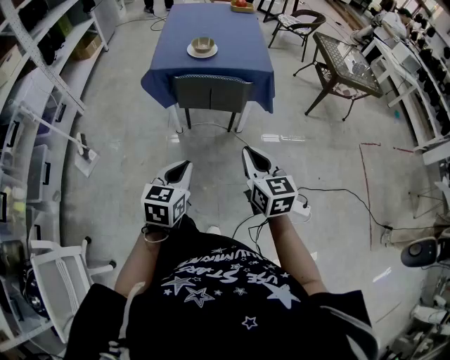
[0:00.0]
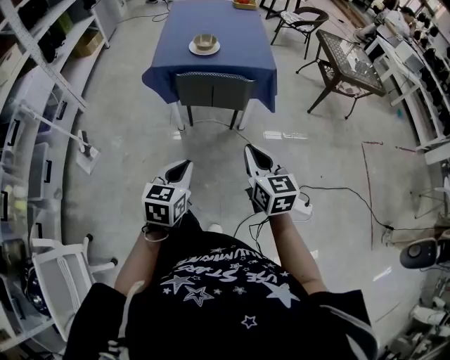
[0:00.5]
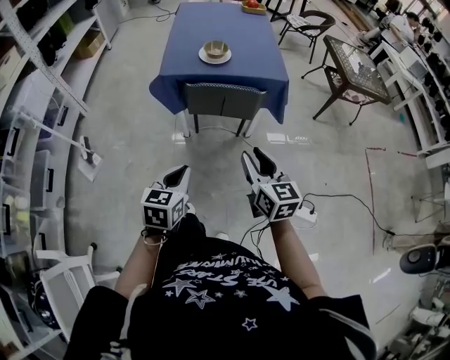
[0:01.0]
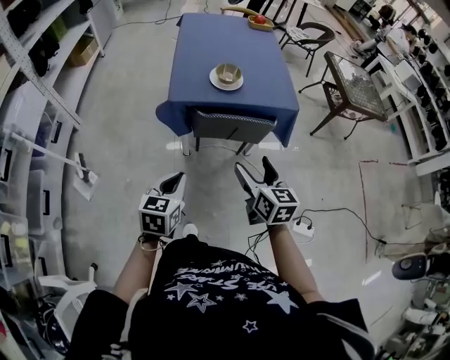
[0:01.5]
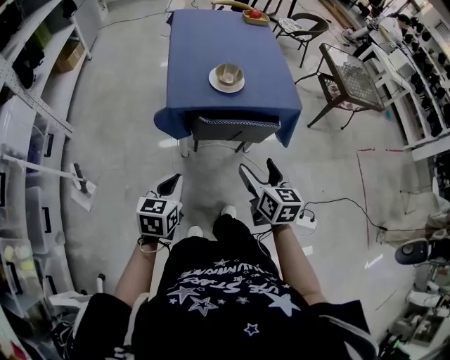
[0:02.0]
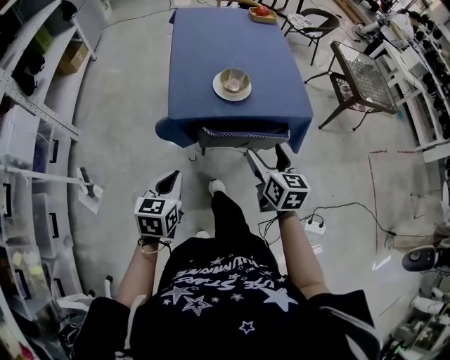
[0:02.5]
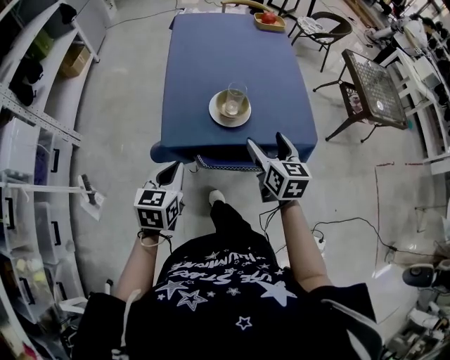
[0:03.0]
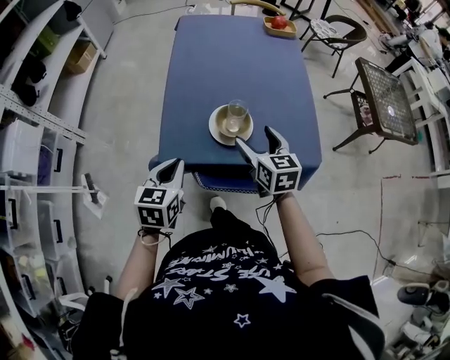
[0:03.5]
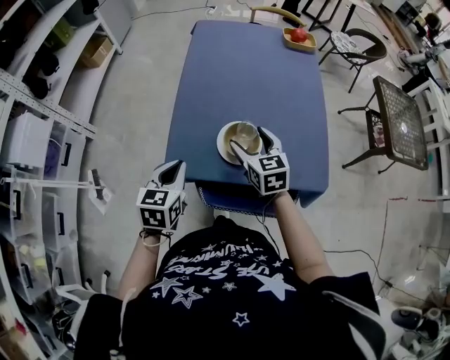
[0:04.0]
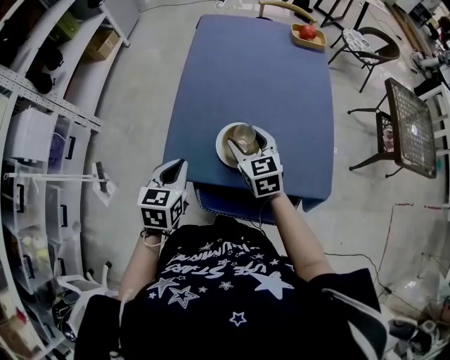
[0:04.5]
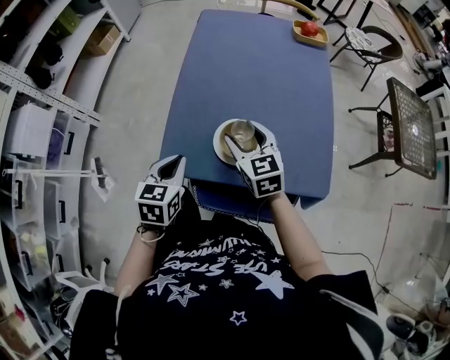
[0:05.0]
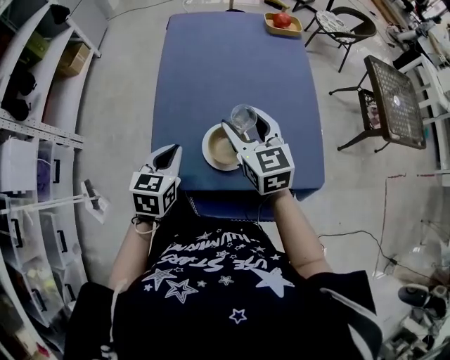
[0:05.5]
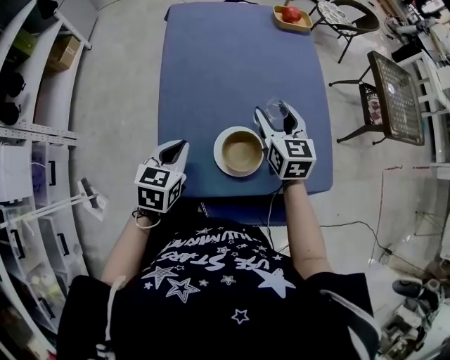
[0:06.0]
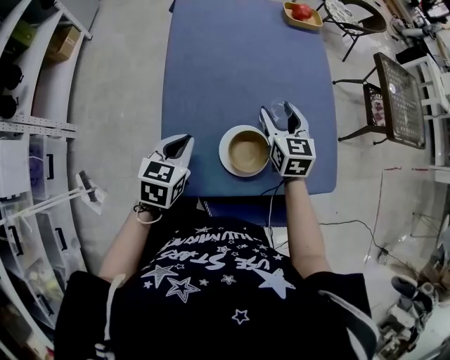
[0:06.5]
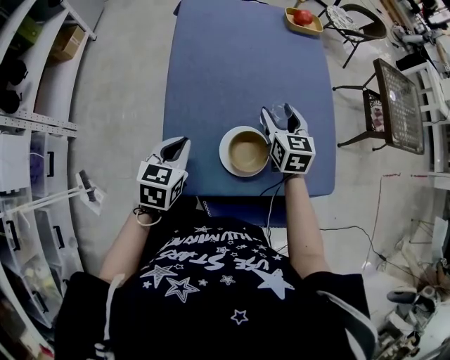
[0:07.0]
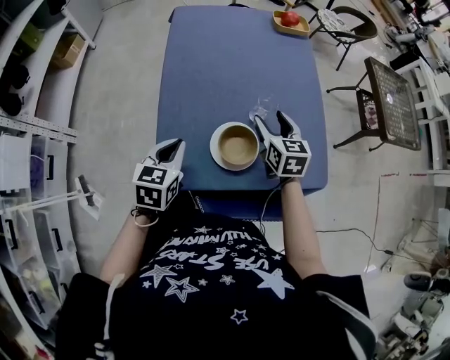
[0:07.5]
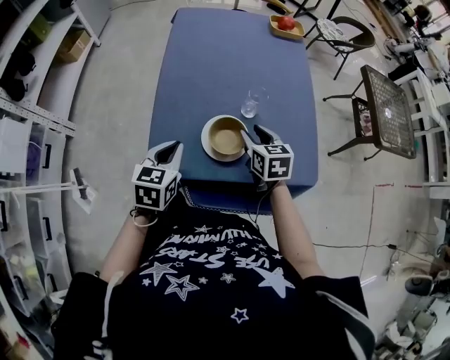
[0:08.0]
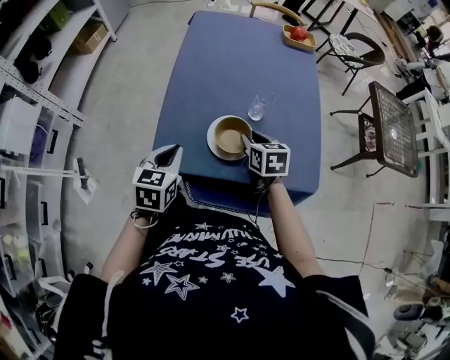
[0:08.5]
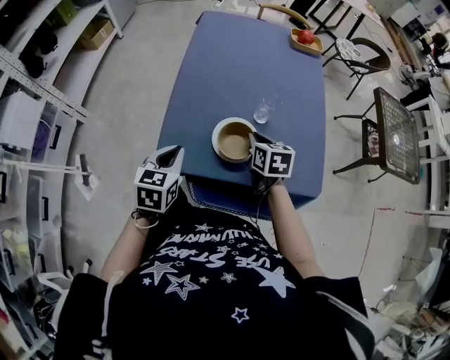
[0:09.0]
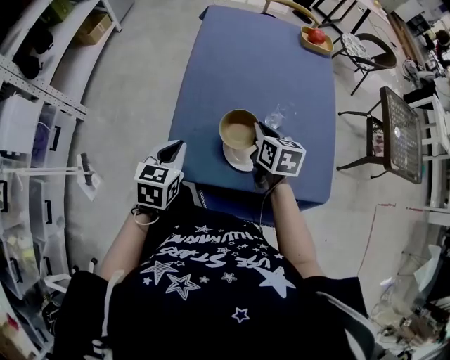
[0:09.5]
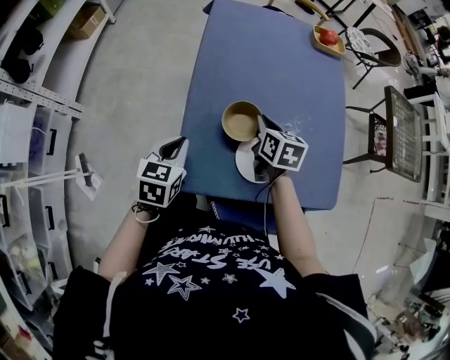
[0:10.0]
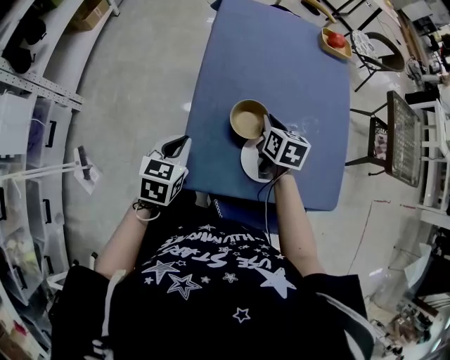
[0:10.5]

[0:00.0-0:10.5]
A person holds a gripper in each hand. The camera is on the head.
0:00.0 to 0:02.0: The right gripper shifts some 25 cm forward and to the left, and opens, while the left gripper travels to the left and forward by approximately 30 cm.
0:02.0 to 0:04.0: The two grippers go approximately 35 cm forward. The right gripper rotates some 30 degrees.
0:04.0 to 0:06.5: The right gripper goes about 15 cm forward and to the right. Meanwhile the left gripper travels forward by some 15 cm.
0:06.5 to 0:08.5: The left gripper travels backward by roughly 10 cm. The right gripper heads backward and downward, covering about 10 cm, changes its angle by some 20 degrees, and closes up.
0:08.5 to 0:10.5: The right gripper goes approximately 15 cm forward and to the left. The left gripper travels to the left and forward by about 15 cm.

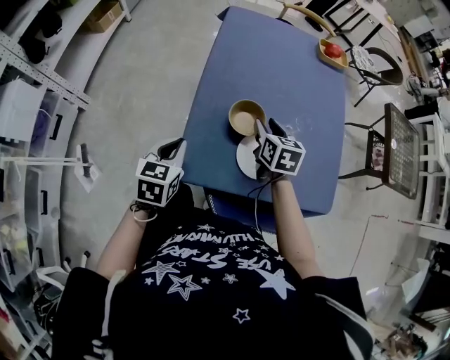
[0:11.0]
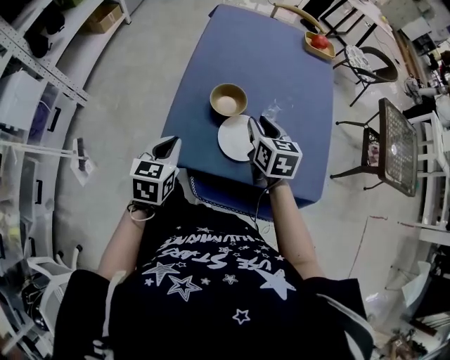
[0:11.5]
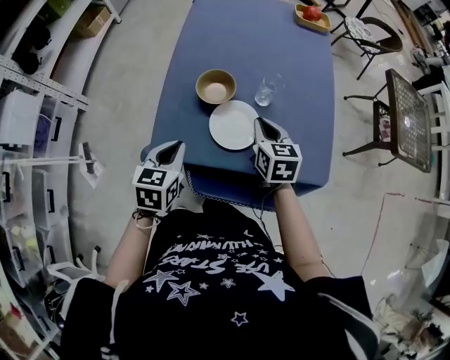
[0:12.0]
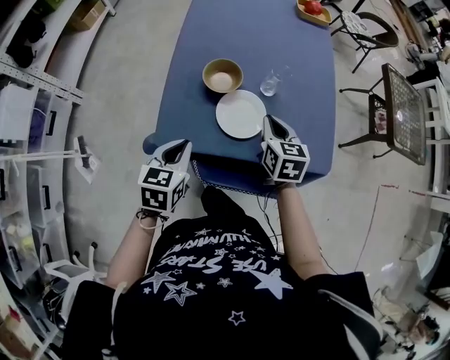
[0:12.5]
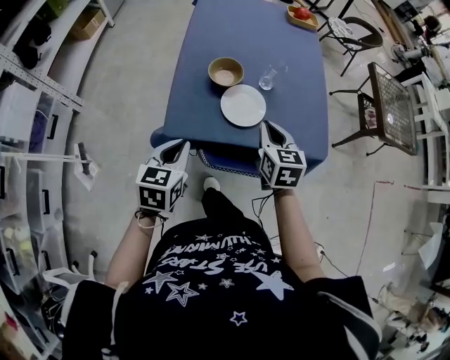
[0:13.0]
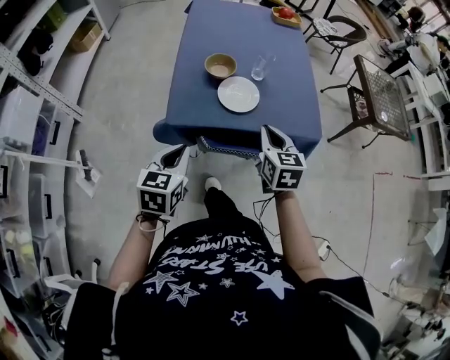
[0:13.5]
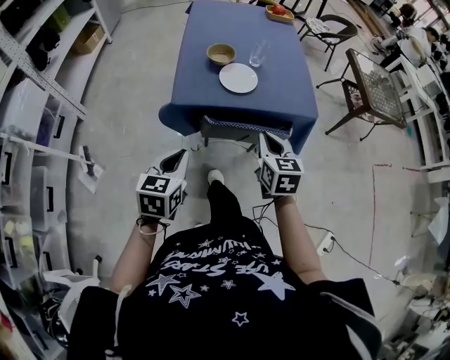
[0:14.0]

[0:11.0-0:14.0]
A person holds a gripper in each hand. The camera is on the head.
0:11.0 to 0:12.5: The right gripper shifts roughly 15 cm backward and to the right, and closes its fingers; the left gripper goes roughly 15 cm to the right and backward.
0:12.5 to 0:14.0: The two grippers go about 25 cm backward.

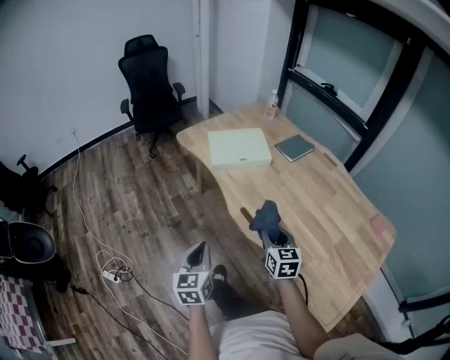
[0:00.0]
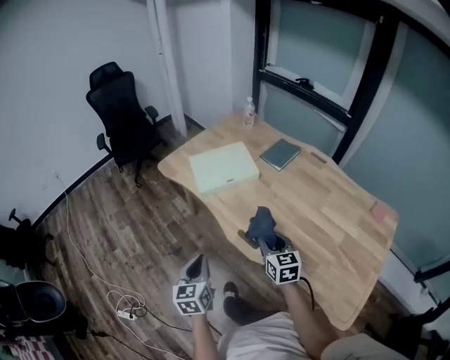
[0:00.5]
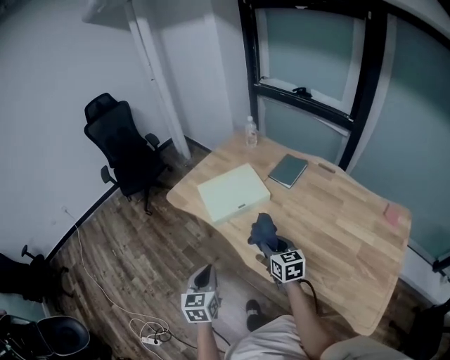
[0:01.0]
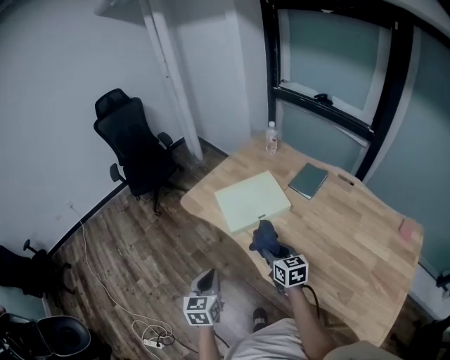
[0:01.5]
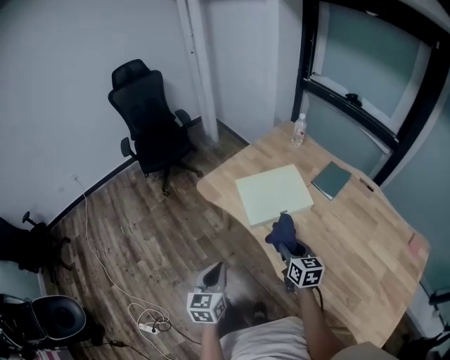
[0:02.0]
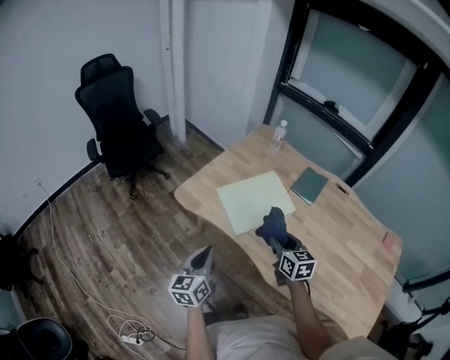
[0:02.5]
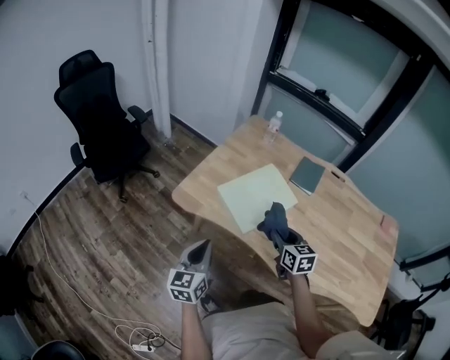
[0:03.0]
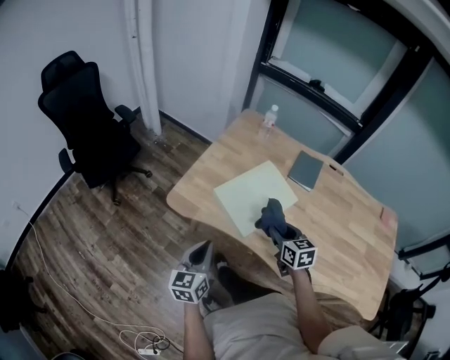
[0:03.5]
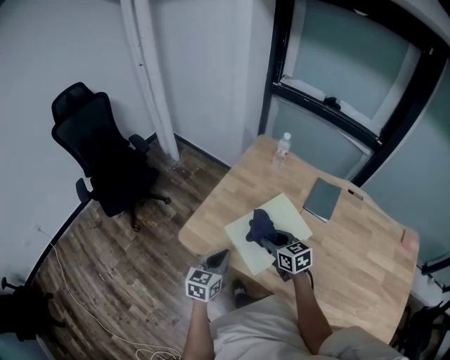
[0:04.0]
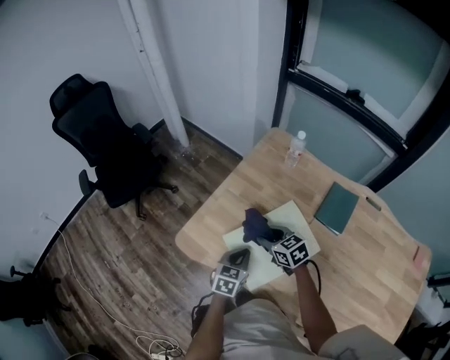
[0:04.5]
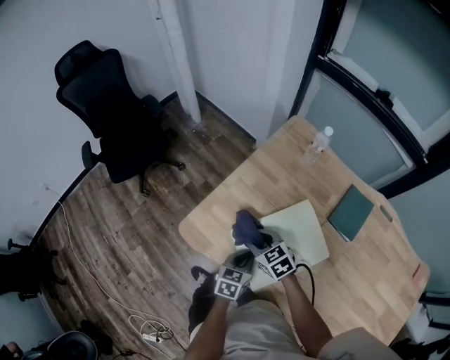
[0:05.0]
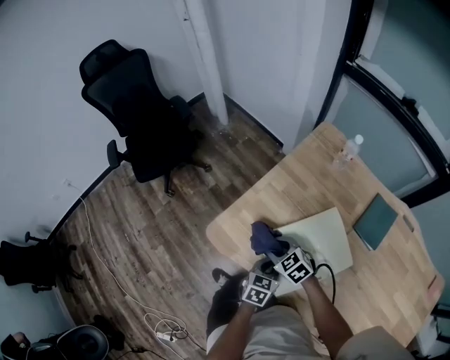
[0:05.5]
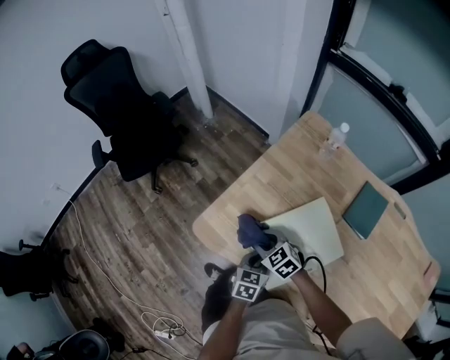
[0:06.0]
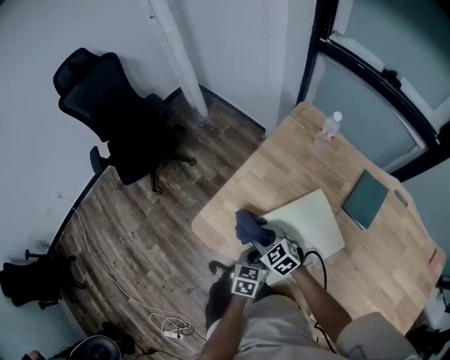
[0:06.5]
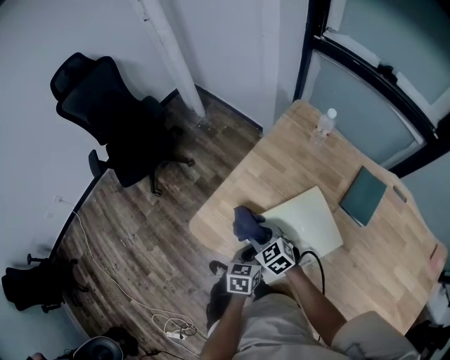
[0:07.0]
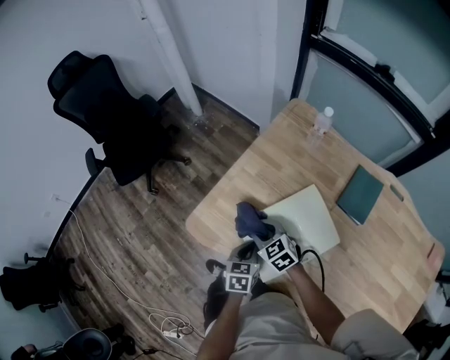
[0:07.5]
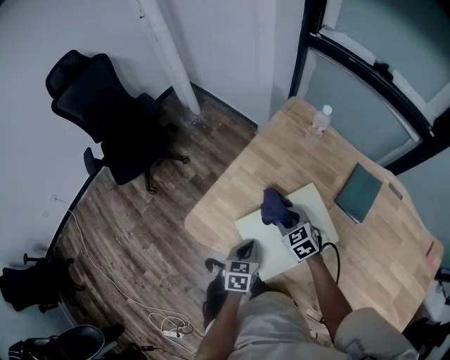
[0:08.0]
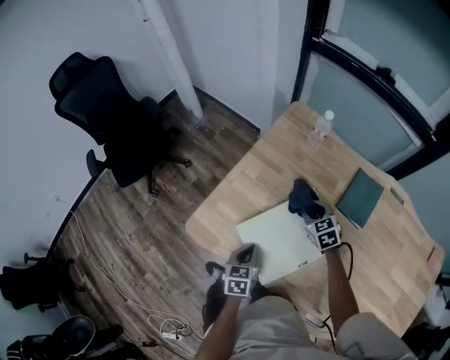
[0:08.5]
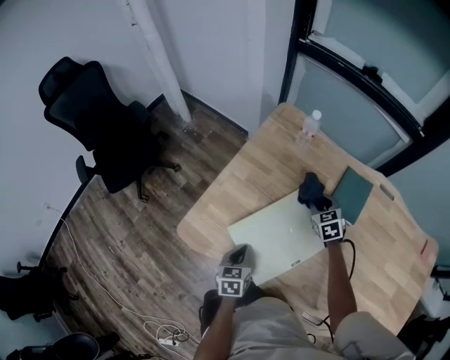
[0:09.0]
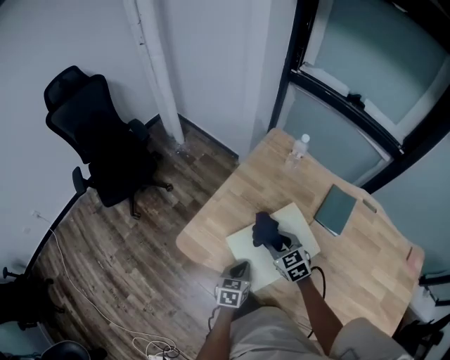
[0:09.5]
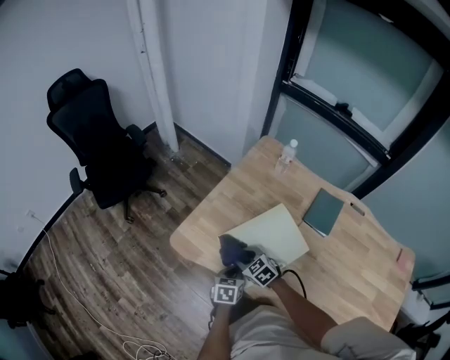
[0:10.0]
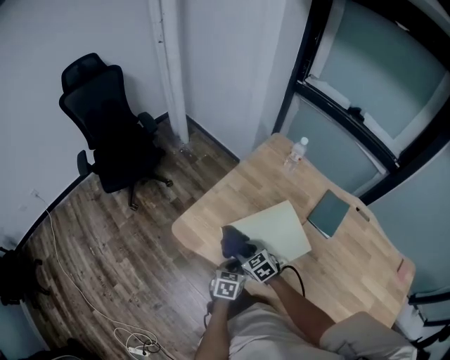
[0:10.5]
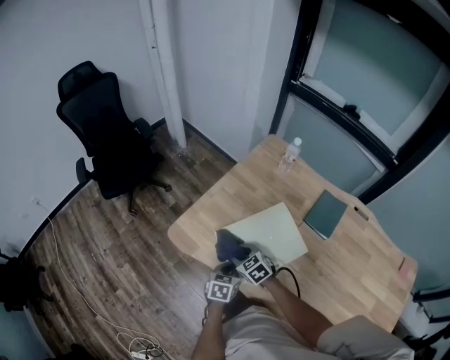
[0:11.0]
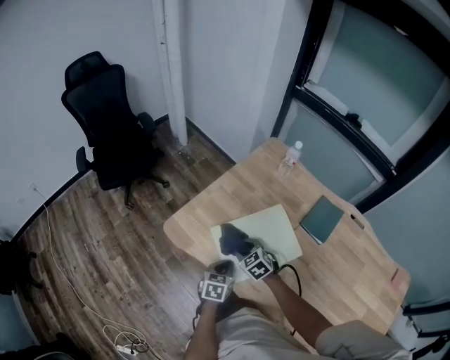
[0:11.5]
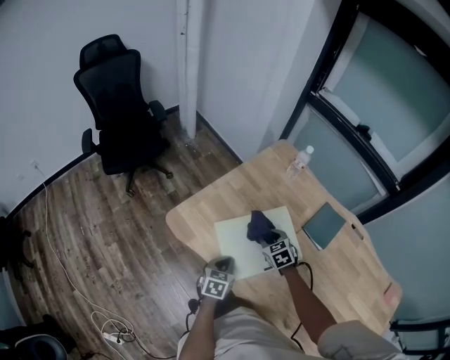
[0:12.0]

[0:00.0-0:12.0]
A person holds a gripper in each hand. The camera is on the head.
0:00.0 to 0:02.0: The two grippers go some 30 cm forward and to the left.
0:02.0 to 0:04.0: The left gripper goes roughly 30 cm forward, and rotates roughly 30 degrees. Meanwhile the right gripper moves forward and to the left, roughly 25 cm.
0:04.0 to 0:06.0: The left gripper goes approximately 15 cm downward, to the right and forward; the right gripper moves downward, to the left and forward, about 20 cm, and turns by roughly 40 degrees.
0:06.0 to 0:08.0: The right gripper shifts roughly 15 cm to the right.
0:08.0 to 0:10.0: The left gripper is displaced backward by about 5 cm; the right gripper is displaced backward by some 10 cm, and moves some 15 cm to the right and comes back.
0:10.0 to 0:12.0: The right gripper goes approximately 15 cm to the right and forward.

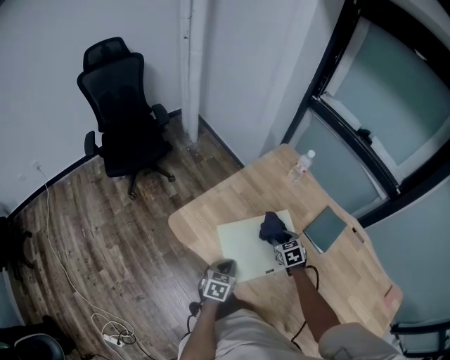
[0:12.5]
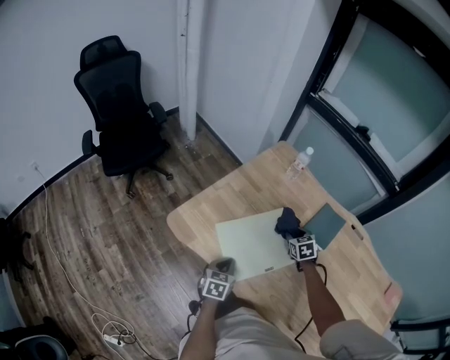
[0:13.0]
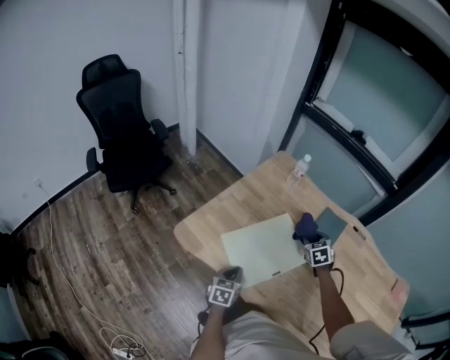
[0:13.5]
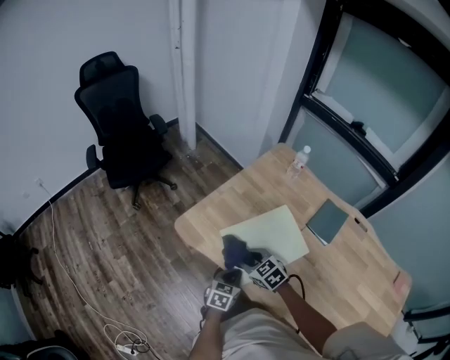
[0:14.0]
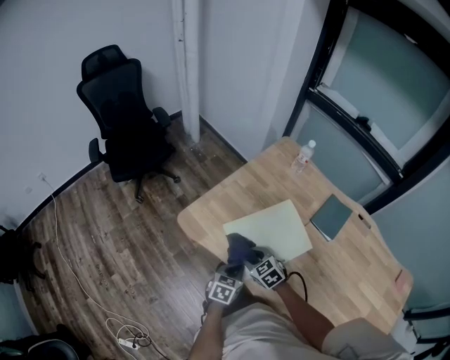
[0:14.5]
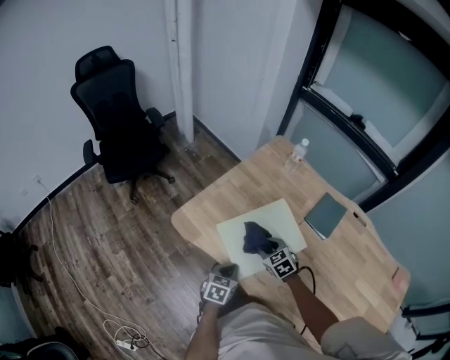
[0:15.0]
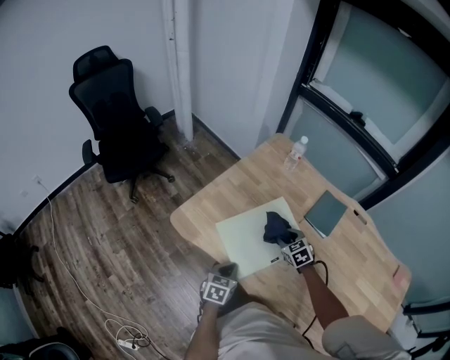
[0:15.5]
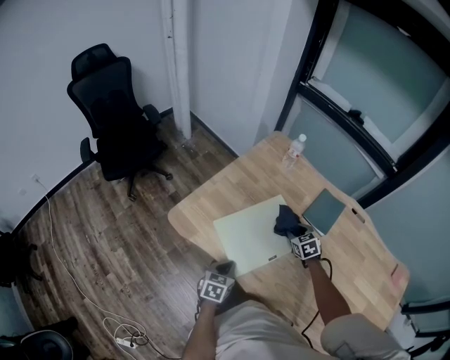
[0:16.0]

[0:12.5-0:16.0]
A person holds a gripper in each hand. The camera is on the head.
0:12.5 to 0:14.5: The right gripper ends up about 20 cm from where it was, and changes its angle by some 20 degrees.
0:14.5 to 0:16.0: The right gripper moves to the right and forward, about 25 cm, and swivels some 30 degrees.
